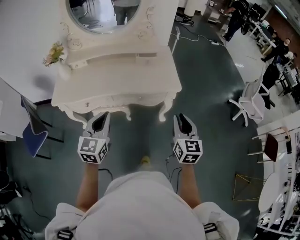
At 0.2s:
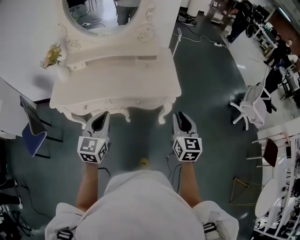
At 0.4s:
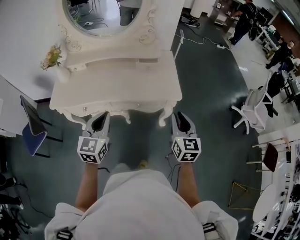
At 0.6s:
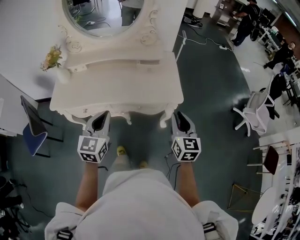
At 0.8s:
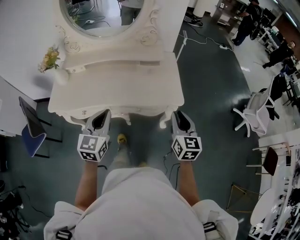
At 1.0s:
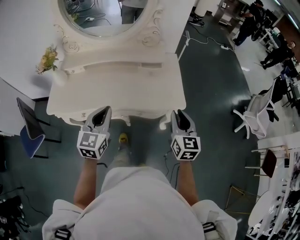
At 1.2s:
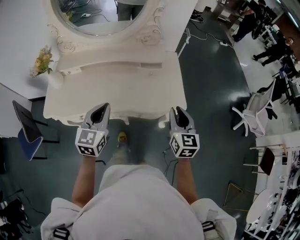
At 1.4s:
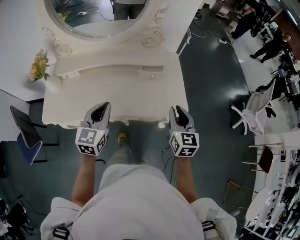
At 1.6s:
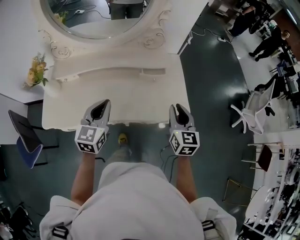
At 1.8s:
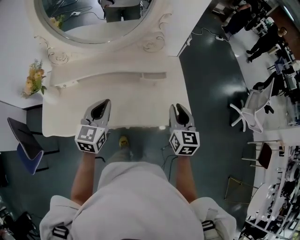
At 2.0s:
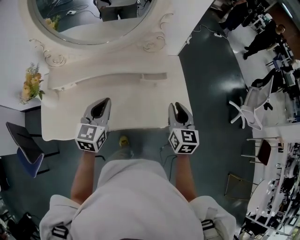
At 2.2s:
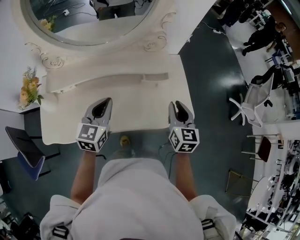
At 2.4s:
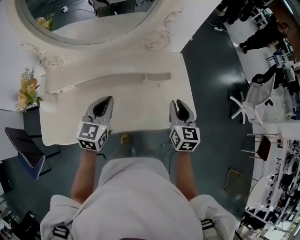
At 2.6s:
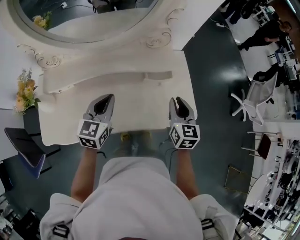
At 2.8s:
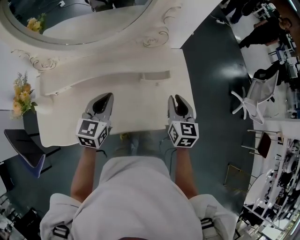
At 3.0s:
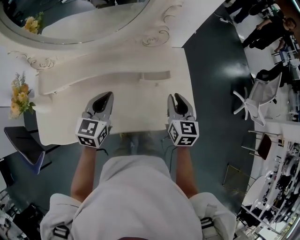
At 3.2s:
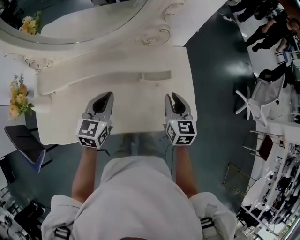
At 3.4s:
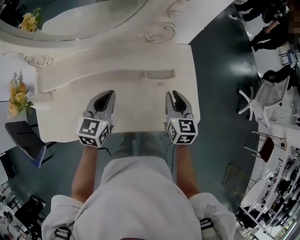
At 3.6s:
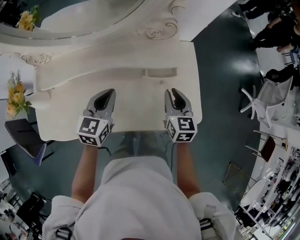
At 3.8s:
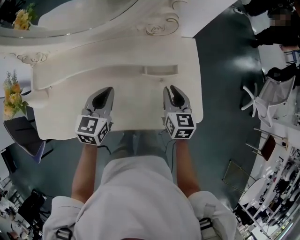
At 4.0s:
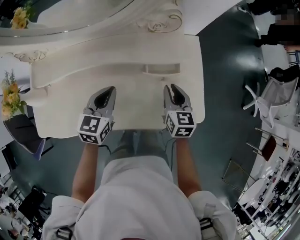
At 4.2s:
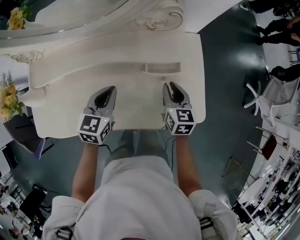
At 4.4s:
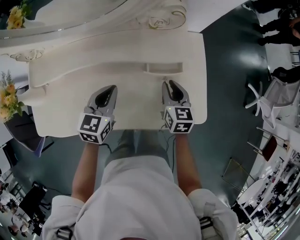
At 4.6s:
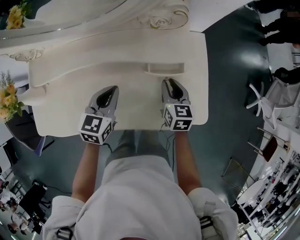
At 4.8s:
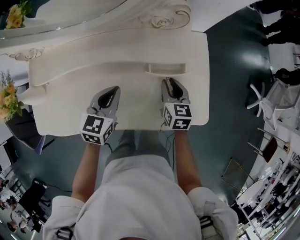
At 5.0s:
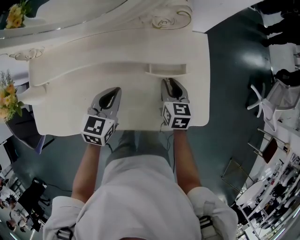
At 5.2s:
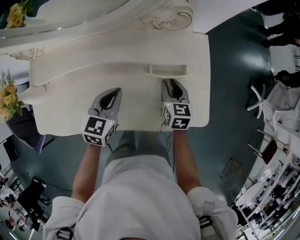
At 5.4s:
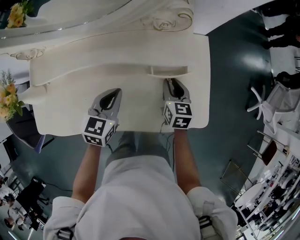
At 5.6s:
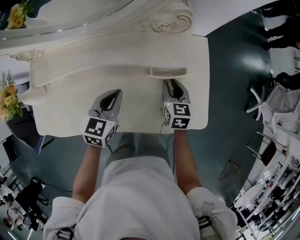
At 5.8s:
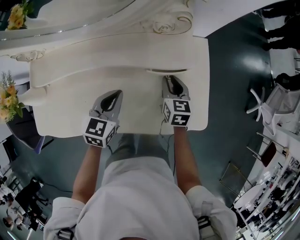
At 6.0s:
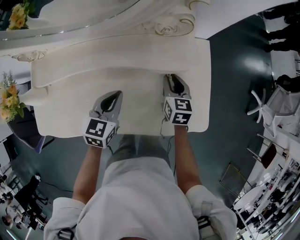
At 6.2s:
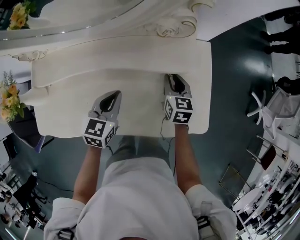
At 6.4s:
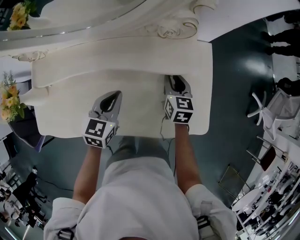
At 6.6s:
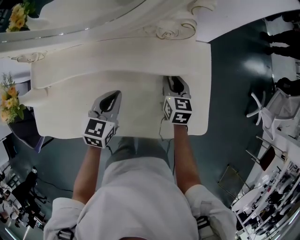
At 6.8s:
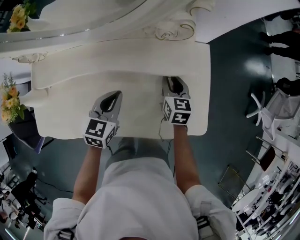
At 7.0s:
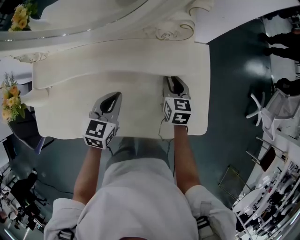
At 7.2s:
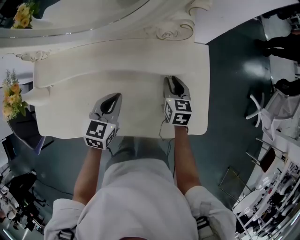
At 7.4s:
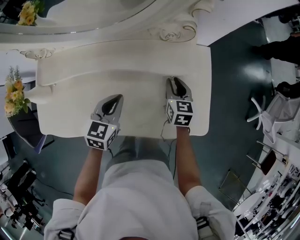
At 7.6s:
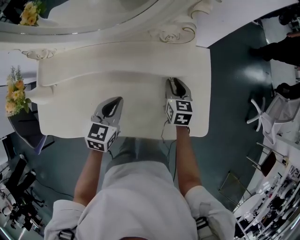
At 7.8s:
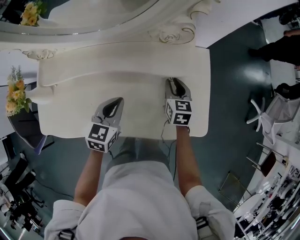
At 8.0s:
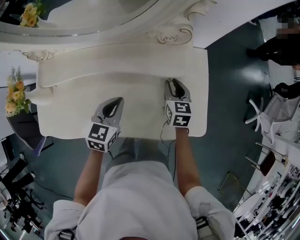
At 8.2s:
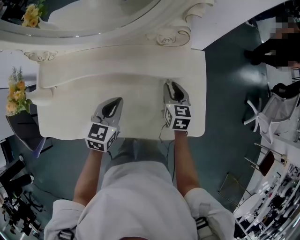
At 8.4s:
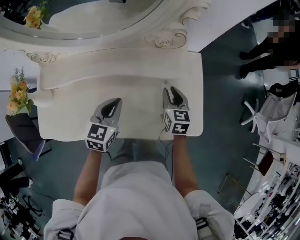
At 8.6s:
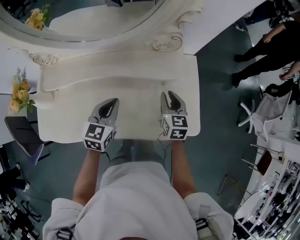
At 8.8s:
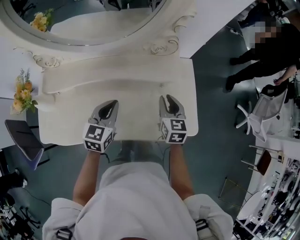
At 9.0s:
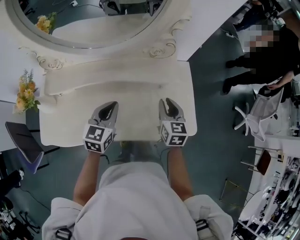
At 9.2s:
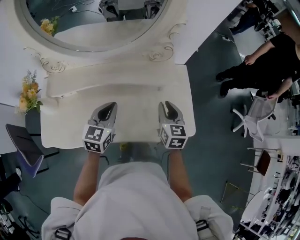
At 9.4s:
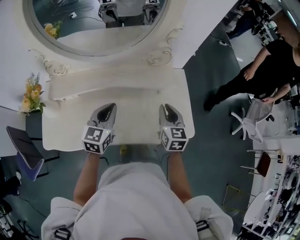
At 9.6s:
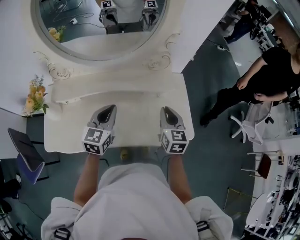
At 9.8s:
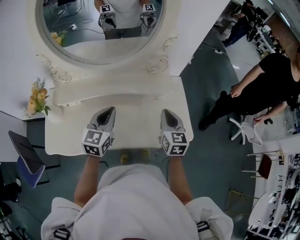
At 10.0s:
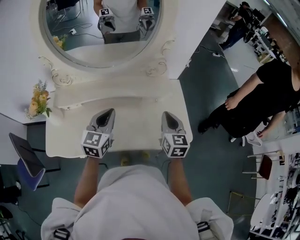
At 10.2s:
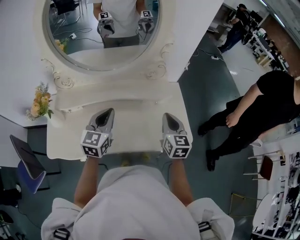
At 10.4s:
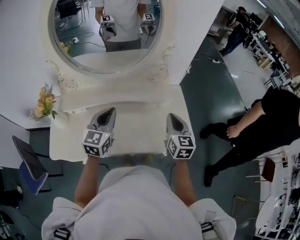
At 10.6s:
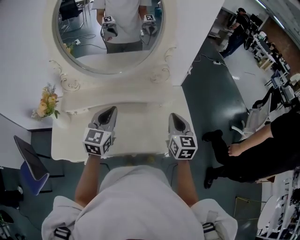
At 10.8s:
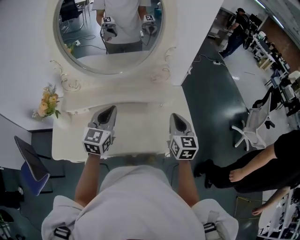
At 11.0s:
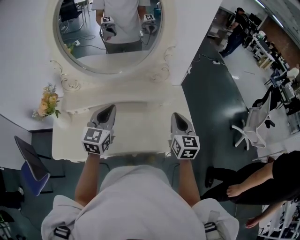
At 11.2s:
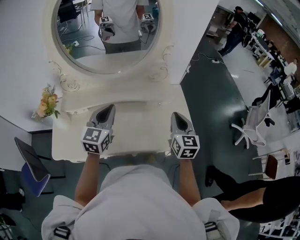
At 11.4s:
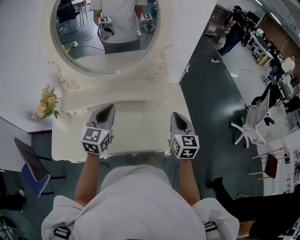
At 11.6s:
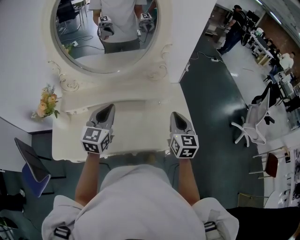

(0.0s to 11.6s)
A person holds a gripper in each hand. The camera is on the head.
0.0s - 1.4s: Both grippers travel together forward, approximately 25 cm.
1.4s - 2.8s: The left gripper heads forward, covering some 20 cm. The right gripper goes approximately 20 cm forward and to the left.
2.8s - 4.4s: Both grippers move downward and forward, approximately 15 cm.
4.4s - 5.8s: The right gripper shifts by approximately 5 cm.
5.8s - 7.2s: The grippers stay close to where they were, moving slightly.
7.2s - 8.8s: The left gripper travels upward by about 5 cm, while the right gripper travels upward and backward by roughly 15 cm.
8.8s - 10.2s: The two grippers go about 15 cm upward and backward. The right gripper closes its fingers.
10.2s - 11.6s: The grippers move only a little.

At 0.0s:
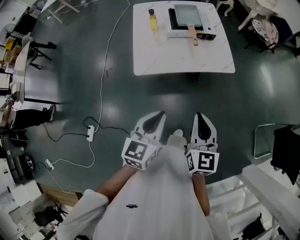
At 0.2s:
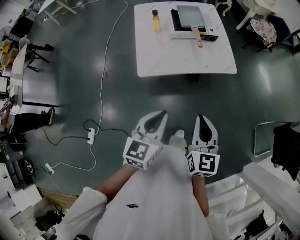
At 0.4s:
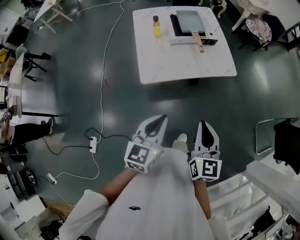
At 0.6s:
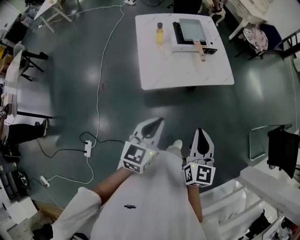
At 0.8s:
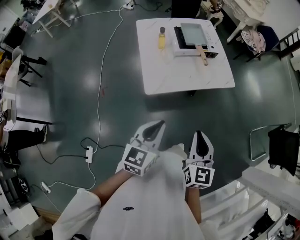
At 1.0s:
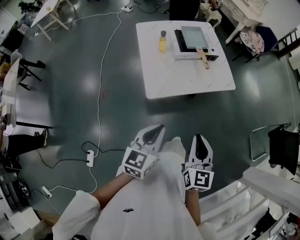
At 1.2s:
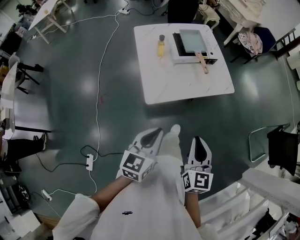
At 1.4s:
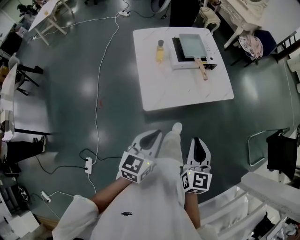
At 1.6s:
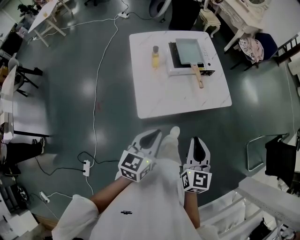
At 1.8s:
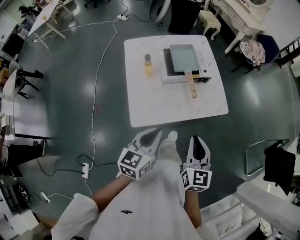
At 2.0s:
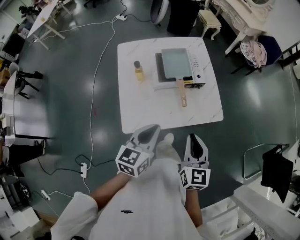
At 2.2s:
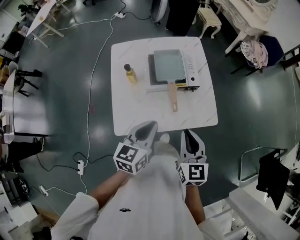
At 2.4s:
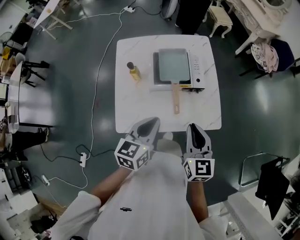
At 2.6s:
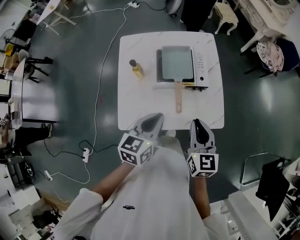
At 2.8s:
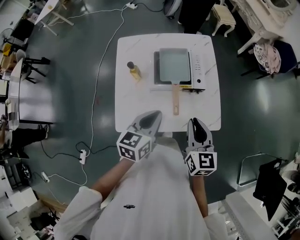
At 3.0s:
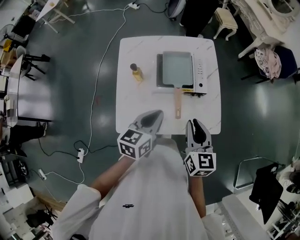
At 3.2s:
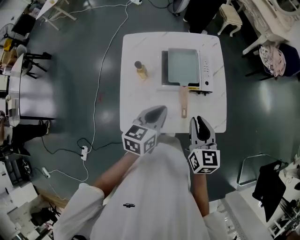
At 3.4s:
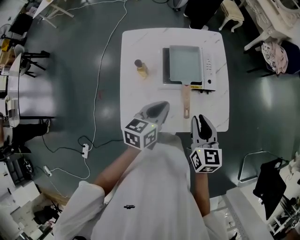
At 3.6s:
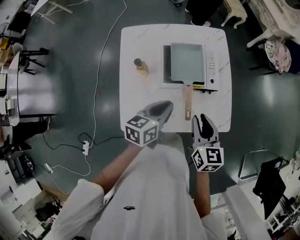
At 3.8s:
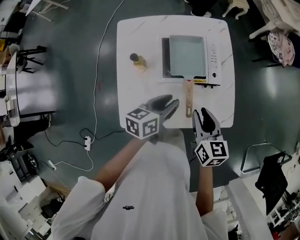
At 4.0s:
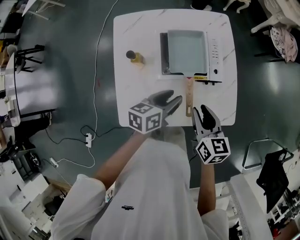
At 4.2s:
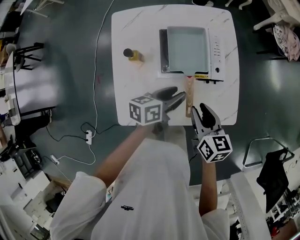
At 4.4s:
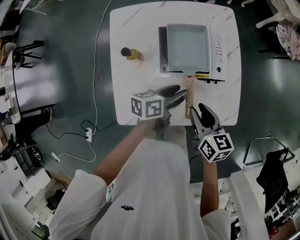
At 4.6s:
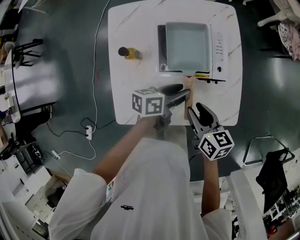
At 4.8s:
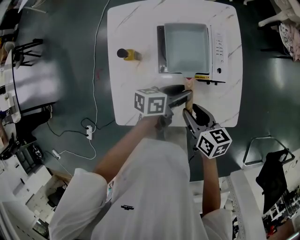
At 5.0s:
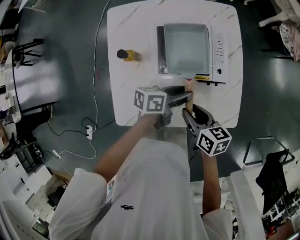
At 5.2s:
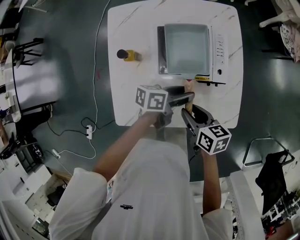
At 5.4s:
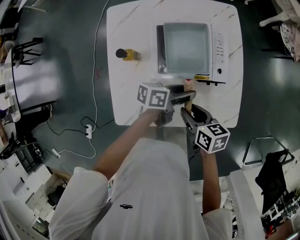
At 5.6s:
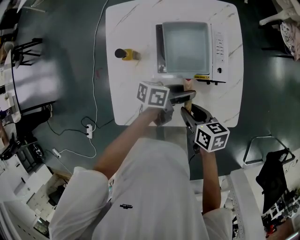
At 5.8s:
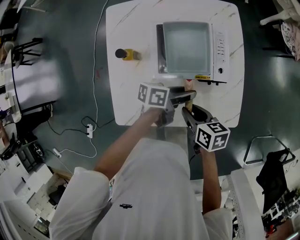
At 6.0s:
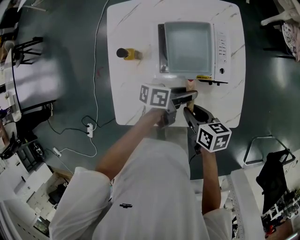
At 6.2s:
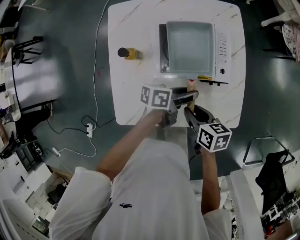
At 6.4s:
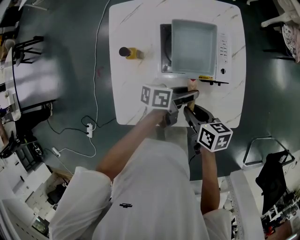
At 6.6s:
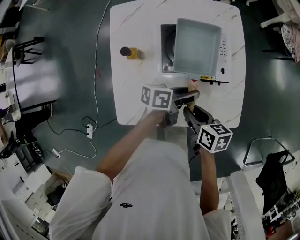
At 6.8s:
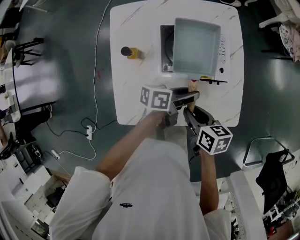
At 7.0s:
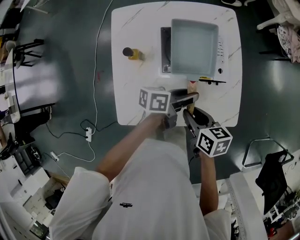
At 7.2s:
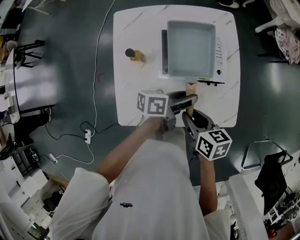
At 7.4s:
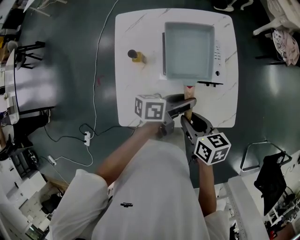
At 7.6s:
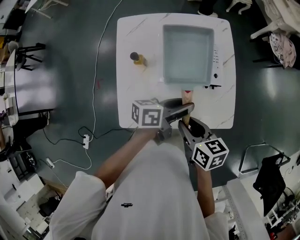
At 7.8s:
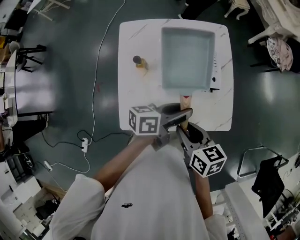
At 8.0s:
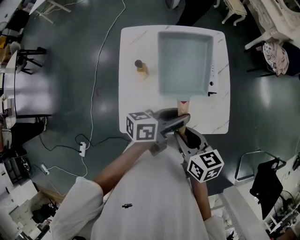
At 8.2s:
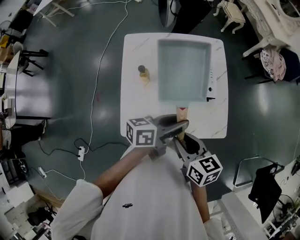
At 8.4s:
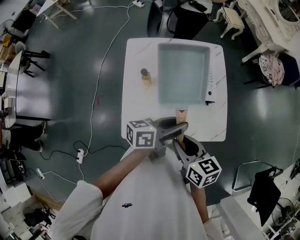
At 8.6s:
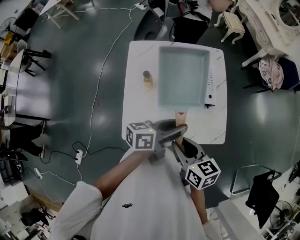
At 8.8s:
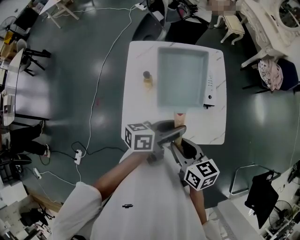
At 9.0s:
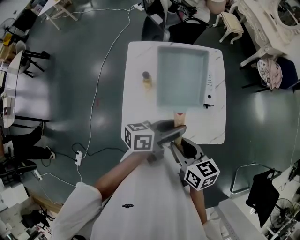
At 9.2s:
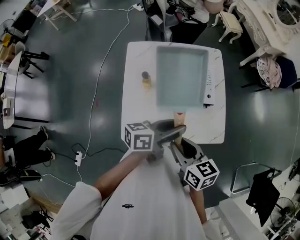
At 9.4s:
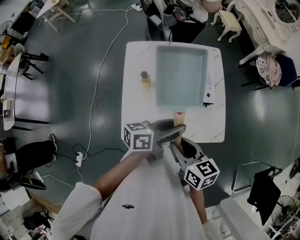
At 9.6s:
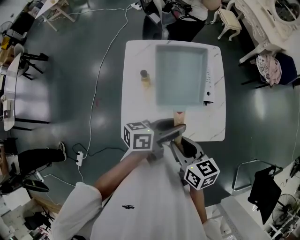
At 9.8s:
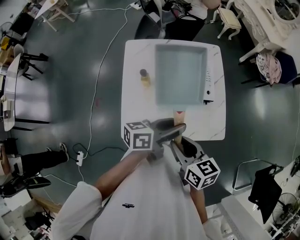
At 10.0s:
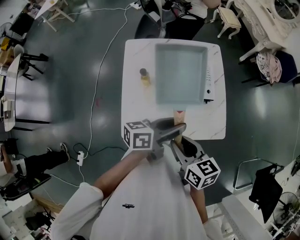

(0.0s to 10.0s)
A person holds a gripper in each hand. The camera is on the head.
0.0s - 1.4s: Both grippers move to the left, approximately 15 cm.
1.4s - 2.8s: The left gripper shifts some 35 cm forward and to the right, while the right gripper is displaced forward by approximately 35 cm.
2.8s - 4.2s: The grippers both shift downward and forward by some 15 cm. The left gripper rotates some 30 degrees, and opens up. Meanwhile the right gripper swivels approximately 20 degrees, and opens its fingers.
4.2s - 5.8s: The left gripper travels to the right and downward by roughly 10 cm, and swivels roughly 20 degrees. The right gripper shifts approximately 10 cm downward, and changes its angle by approximately 30 degrees.
5.8s - 7.2s: The grippers both shift upward by approximately 5 cm.
7.2s - 8.6s: Both grippers move upward and backward, some 15 cm.
8.6s - 10.0s: Neither gripper changes place.

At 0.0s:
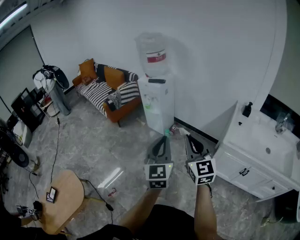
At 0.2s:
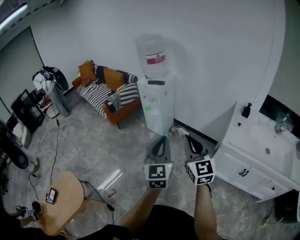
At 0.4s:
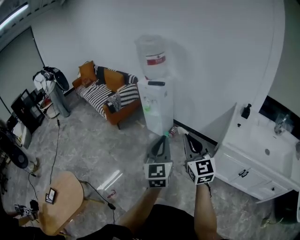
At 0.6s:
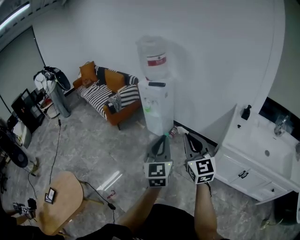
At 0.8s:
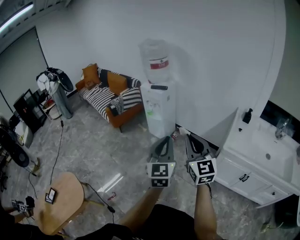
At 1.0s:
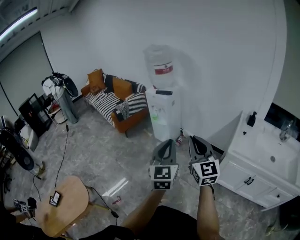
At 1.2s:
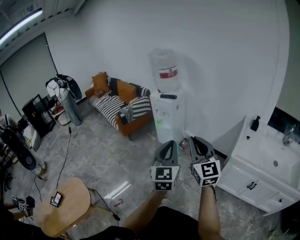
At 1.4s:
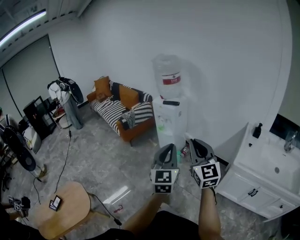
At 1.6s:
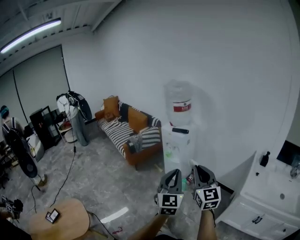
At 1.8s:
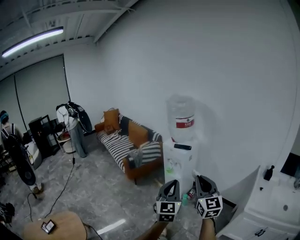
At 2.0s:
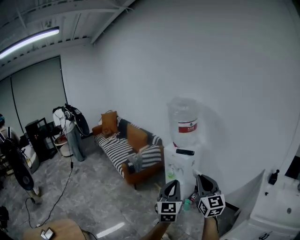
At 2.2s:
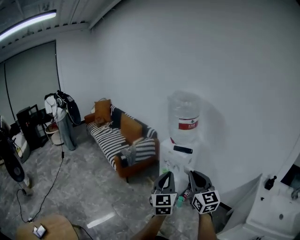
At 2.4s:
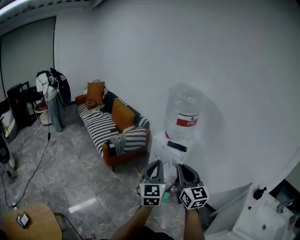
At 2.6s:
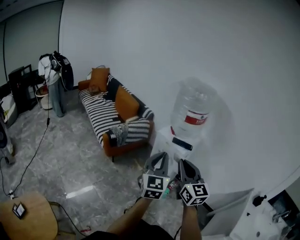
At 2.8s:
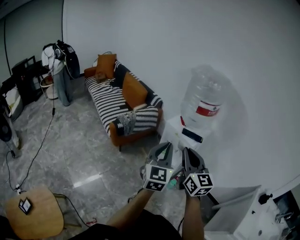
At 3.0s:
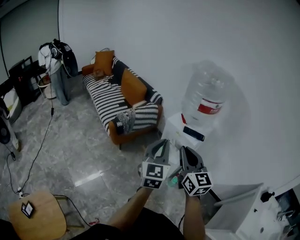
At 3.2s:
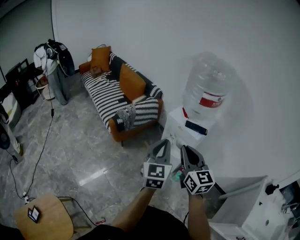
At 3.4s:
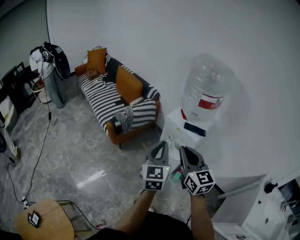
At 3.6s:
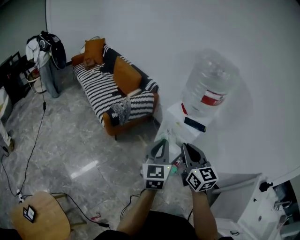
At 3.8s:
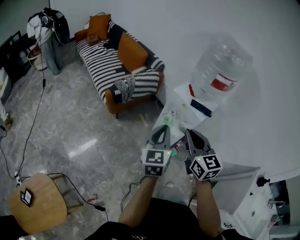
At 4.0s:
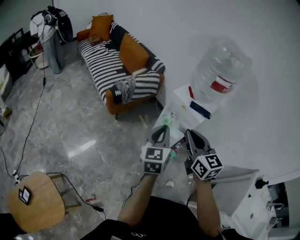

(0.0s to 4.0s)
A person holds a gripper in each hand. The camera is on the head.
0.0s - 1.4s: The left gripper changes place by approximately 5 cm. The right gripper heads upward, covering approximately 5 cm.
1.4s - 2.6s: The two grippers travel together, forward, roughly 40 cm.
2.6s - 4.0s: The left gripper goes about 15 cm downward, forward and to the left, and rotates approximately 20 degrees; the right gripper is displaced forward, downward and to the left by approximately 15 cm.
